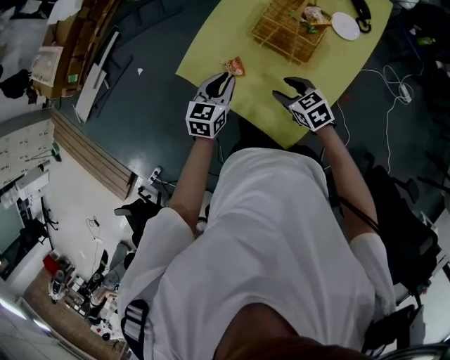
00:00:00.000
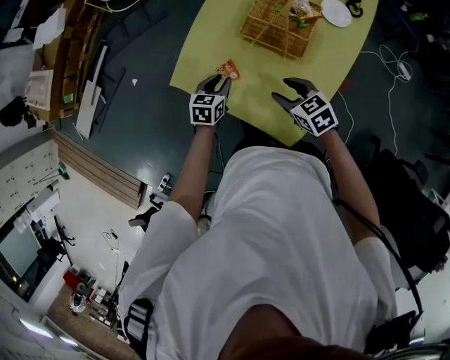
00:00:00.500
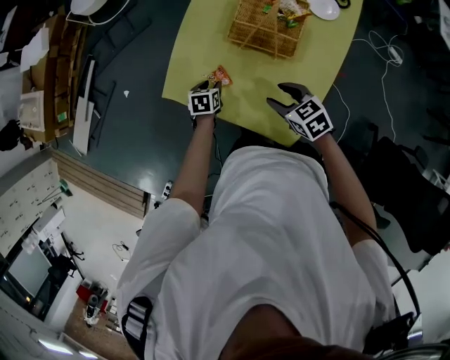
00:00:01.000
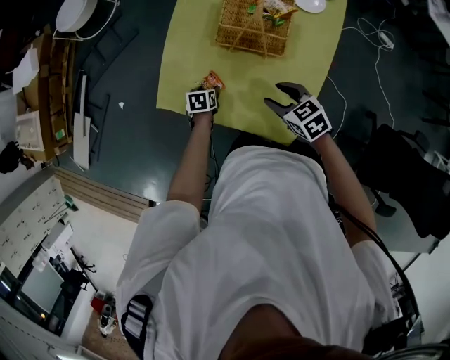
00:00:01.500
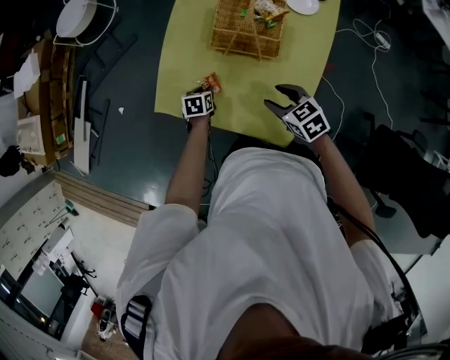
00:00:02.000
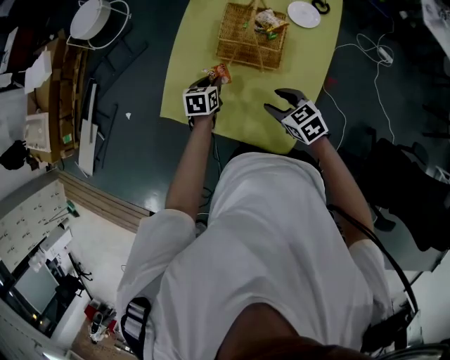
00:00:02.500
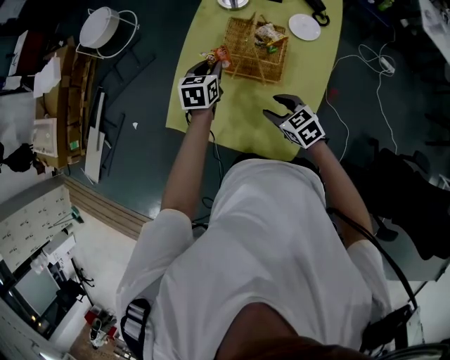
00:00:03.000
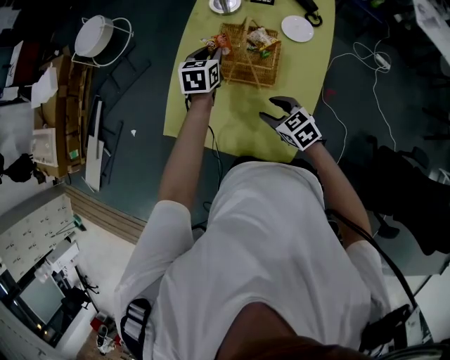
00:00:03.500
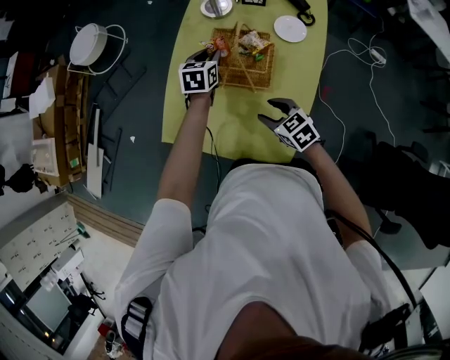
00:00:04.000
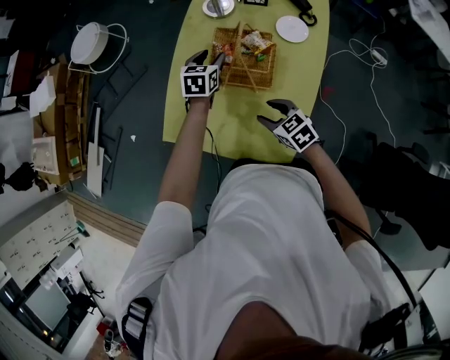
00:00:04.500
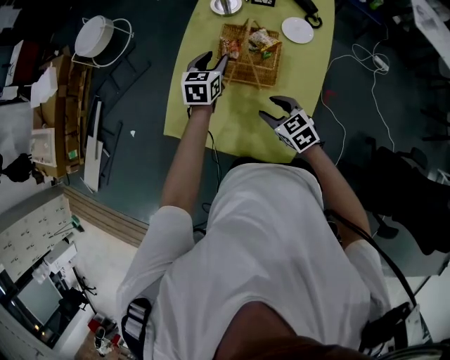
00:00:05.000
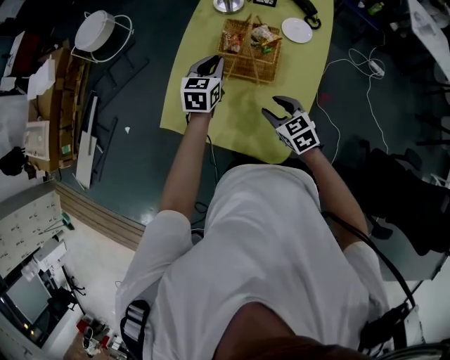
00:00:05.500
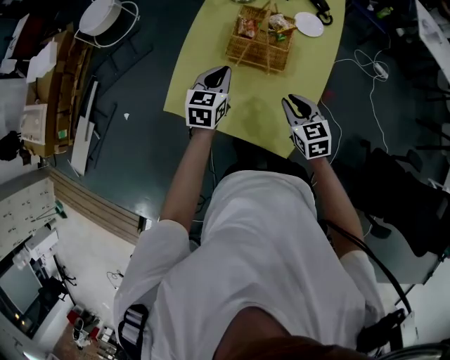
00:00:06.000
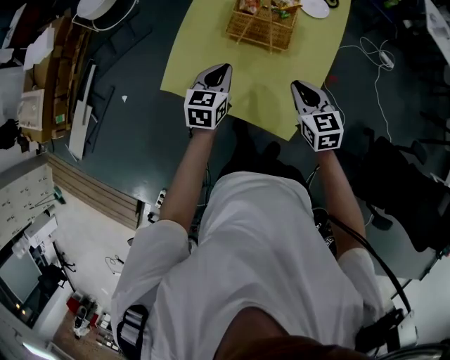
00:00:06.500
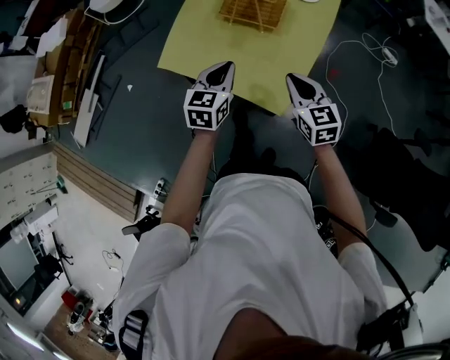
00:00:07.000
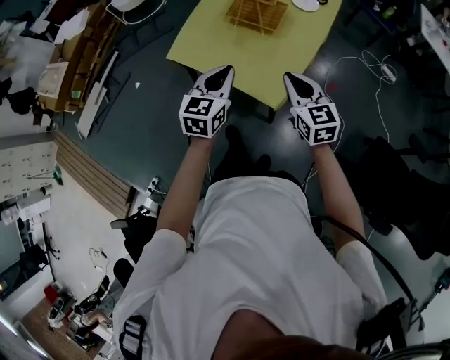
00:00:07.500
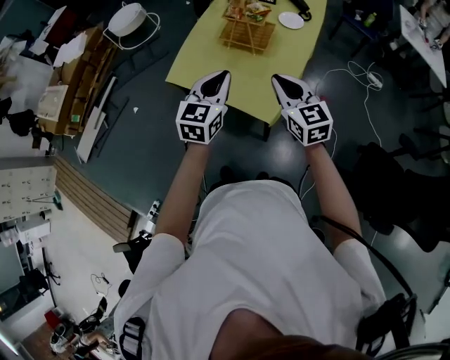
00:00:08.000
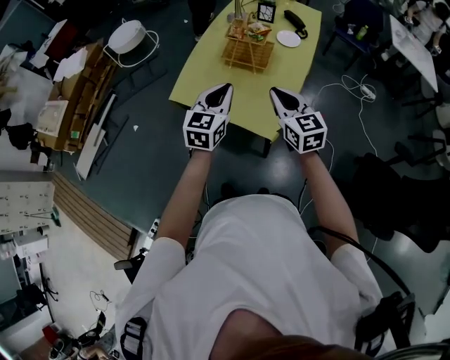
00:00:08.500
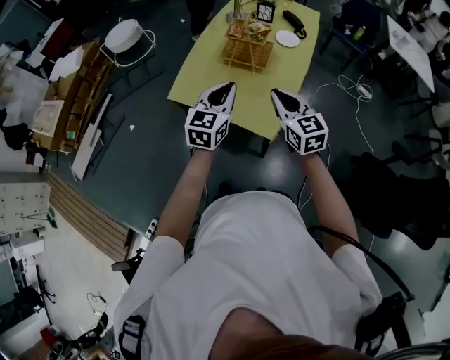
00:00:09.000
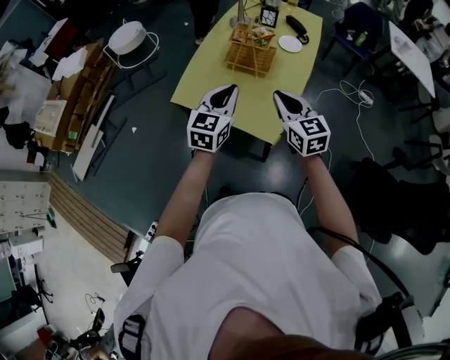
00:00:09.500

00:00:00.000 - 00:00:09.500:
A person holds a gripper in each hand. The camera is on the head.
00:00:00.000 - 00:00:02.000: The left gripper travels downward by some 20 cm, points its fingers some 30 degrees further downward, and opens, then closes once more. Meanwhile the right gripper goes some 5 cm to the right.
00:00:02.000 - 00:00:04.000: The right gripper moves roughly 5 cm; the left gripper shifts some 30 cm upward, forward and to the right, and changes its angle by roughly 30 degrees.
00:00:04.000 - 00:00:05.500: The left gripper moves backward, about 10 cm, and opens and closes again.
00:00:05.500 - 00:00:07.500: The left gripper moves backward, about 40 cm. Meanwhile the right gripper travels backward and upward by approximately 25 cm, turns by roughly 20 degrees, and closes up.
00:00:07.500 - 00:00:09.500: The left gripper goes roughly 10 cm upward. The right gripper shifts some 10 cm upward and to the left.

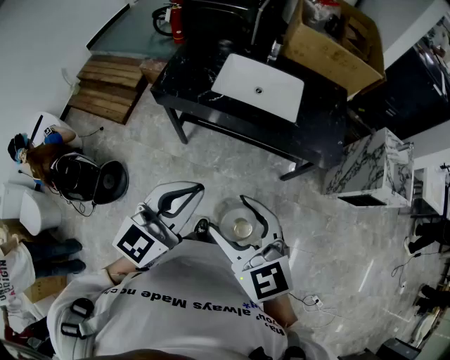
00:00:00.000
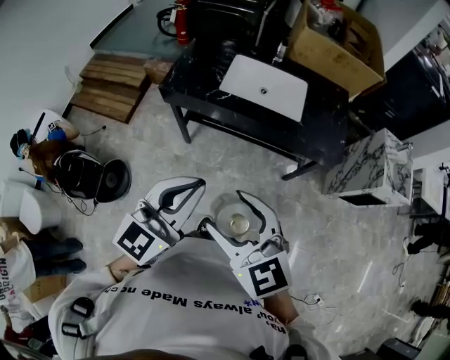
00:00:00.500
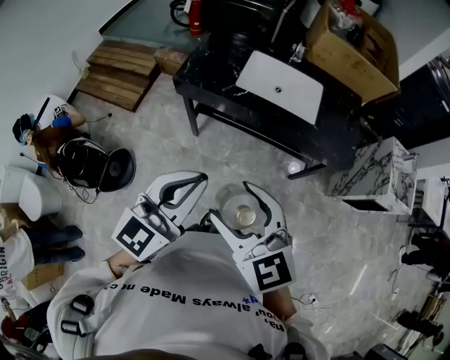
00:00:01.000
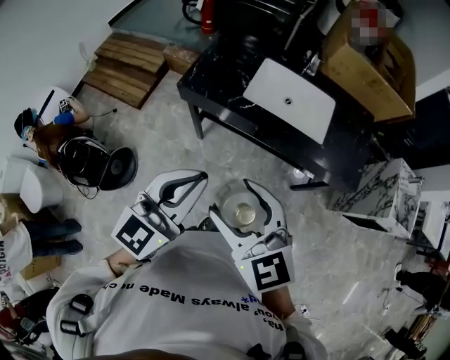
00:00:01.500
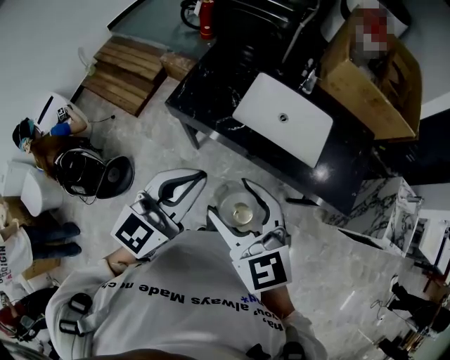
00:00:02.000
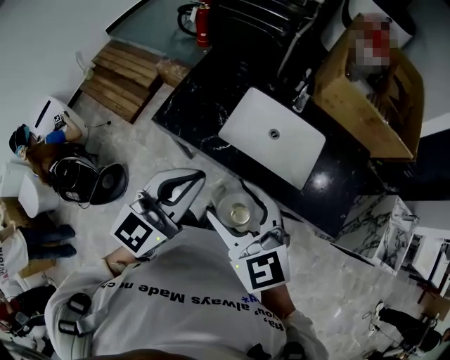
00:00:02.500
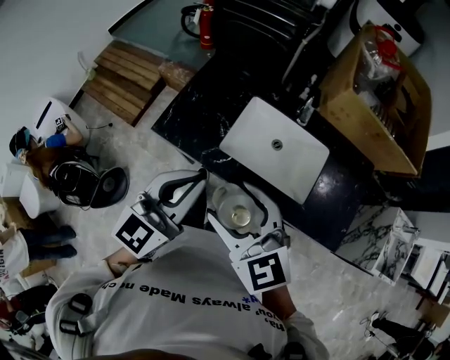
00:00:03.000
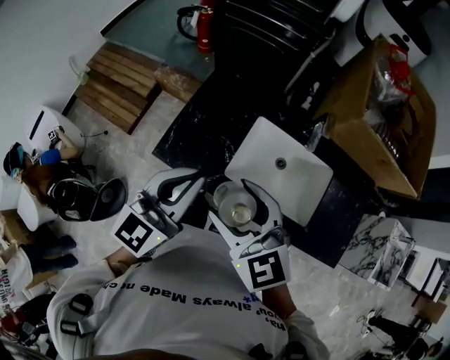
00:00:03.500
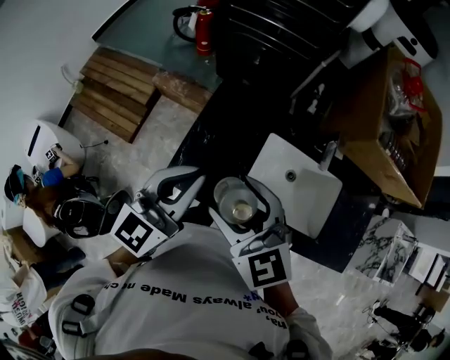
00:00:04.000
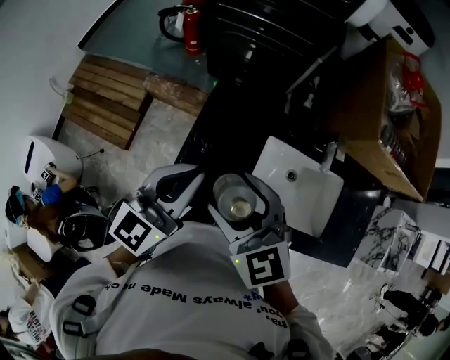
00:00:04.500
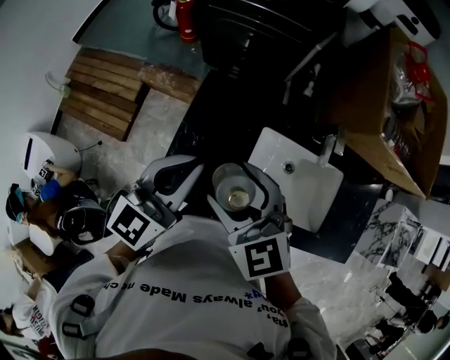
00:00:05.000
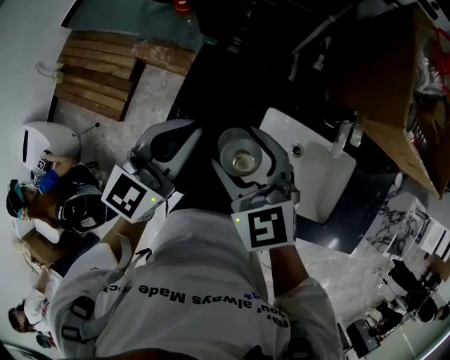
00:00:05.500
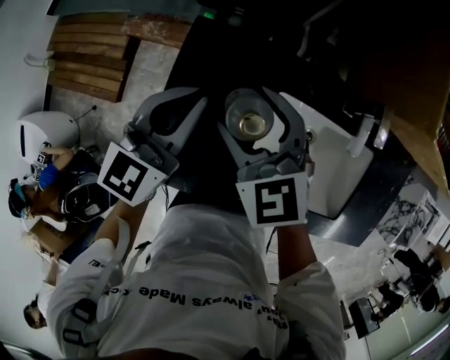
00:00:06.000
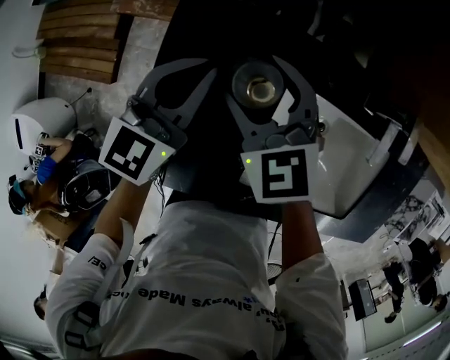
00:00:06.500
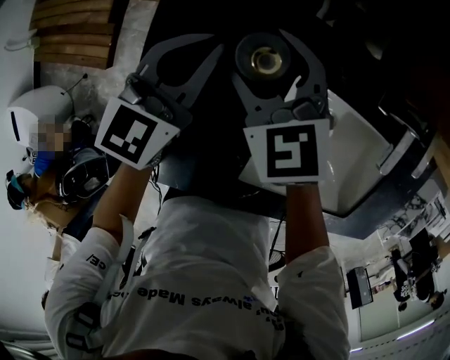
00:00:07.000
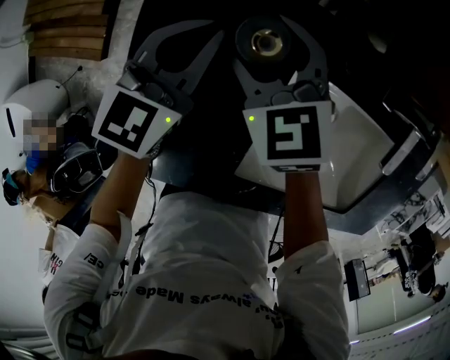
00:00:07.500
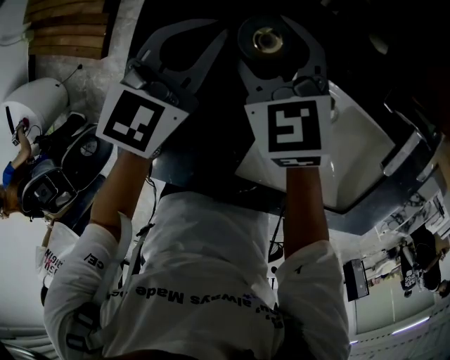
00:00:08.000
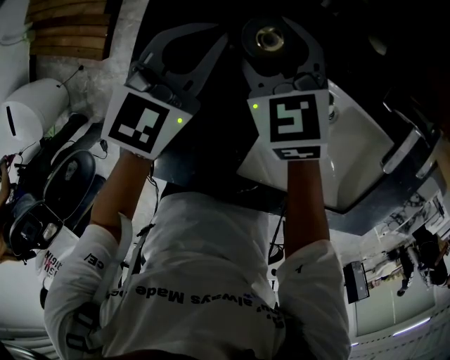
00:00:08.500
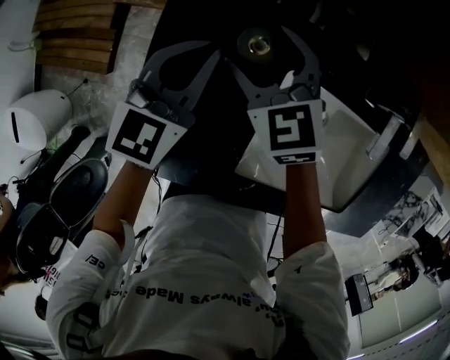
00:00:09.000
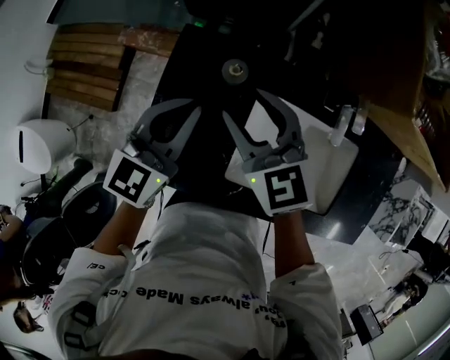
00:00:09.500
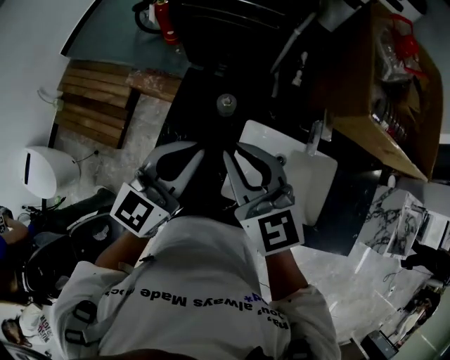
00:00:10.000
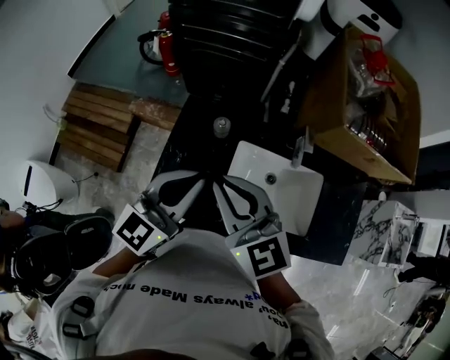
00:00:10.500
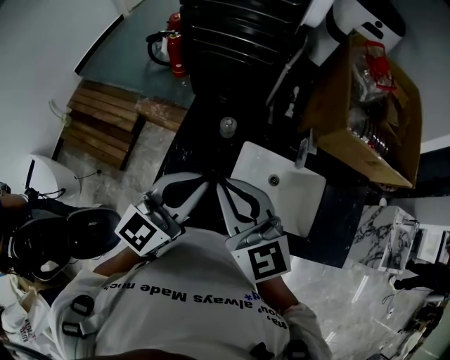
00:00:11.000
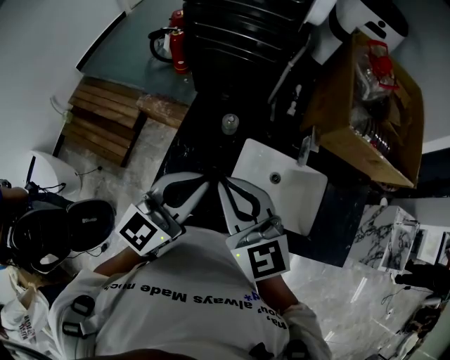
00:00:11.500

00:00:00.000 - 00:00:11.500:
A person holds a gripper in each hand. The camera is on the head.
00:00:00.000 - 00:00:02.000: The grippers both shift forward by approximately 20 cm.
00:00:02.000 - 00:00:04.000: Both grippers move forward, about 35 cm.
00:00:04.000 - 00:00:06.000: The grippers both shift forward and downward by roughly 25 cm.
00:00:06.000 - 00:00:07.500: The grippers both shift downward and forward by approximately 20 cm.
00:00:07.500 - 00:00:09.500: The left gripper goes about 25 cm upward and backward; the right gripper heads upward, backward and to the right, covering about 25 cm.
00:00:09.500 - 00:00:11.500: Both grippers move backward and upward, some 25 cm. The right gripper closes.

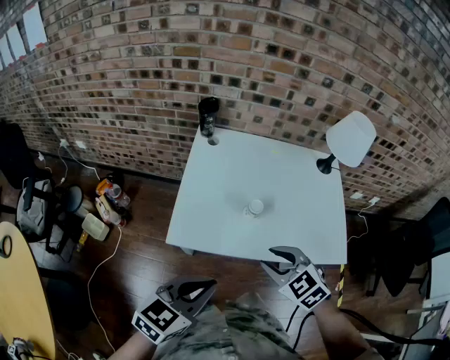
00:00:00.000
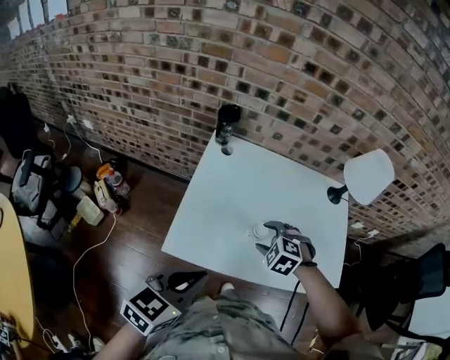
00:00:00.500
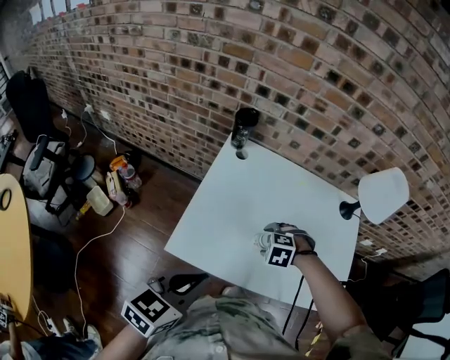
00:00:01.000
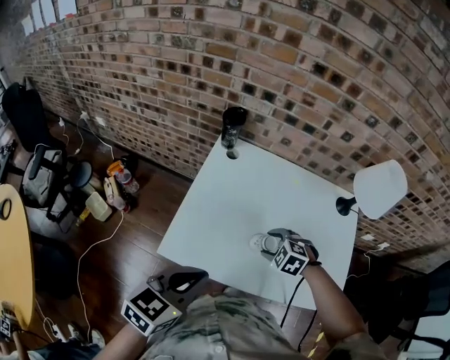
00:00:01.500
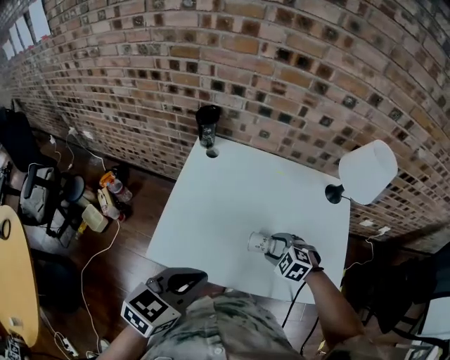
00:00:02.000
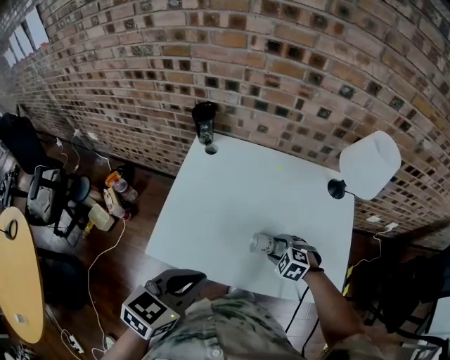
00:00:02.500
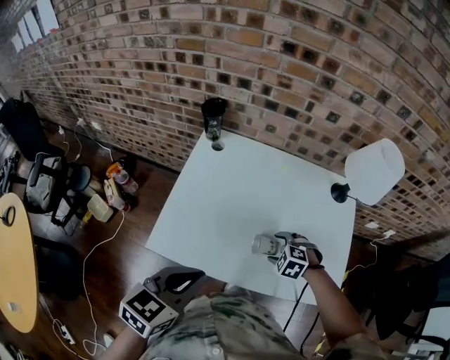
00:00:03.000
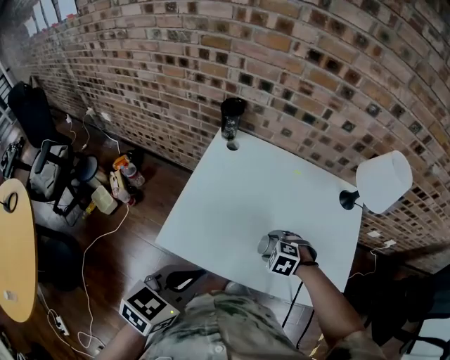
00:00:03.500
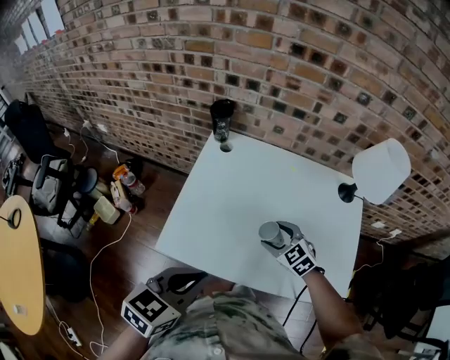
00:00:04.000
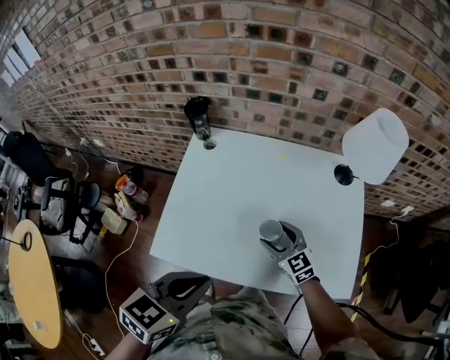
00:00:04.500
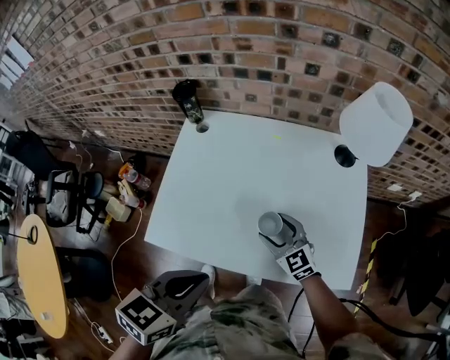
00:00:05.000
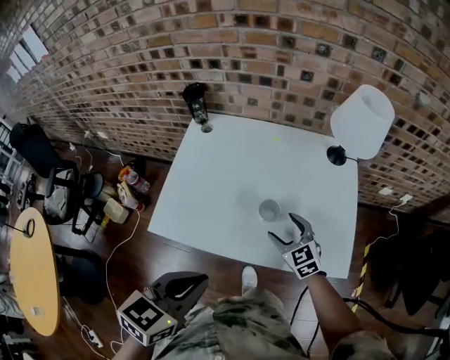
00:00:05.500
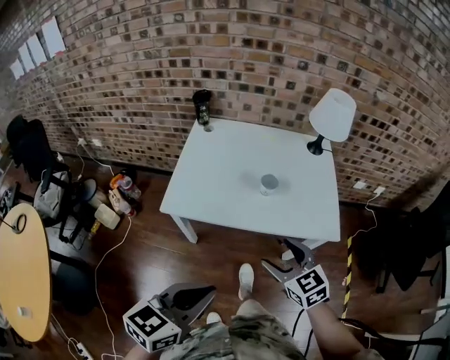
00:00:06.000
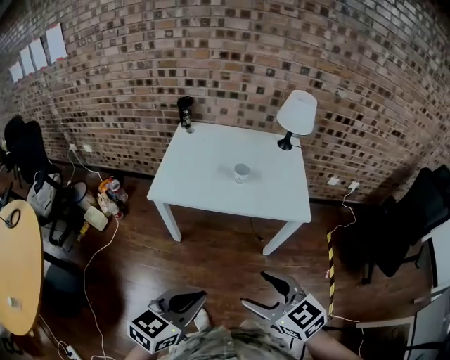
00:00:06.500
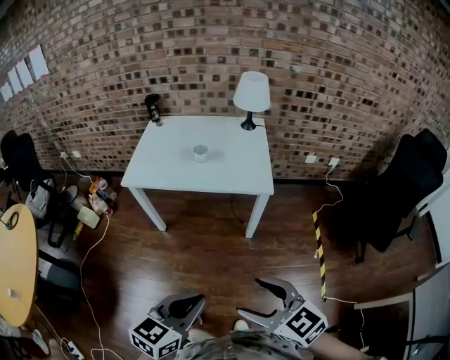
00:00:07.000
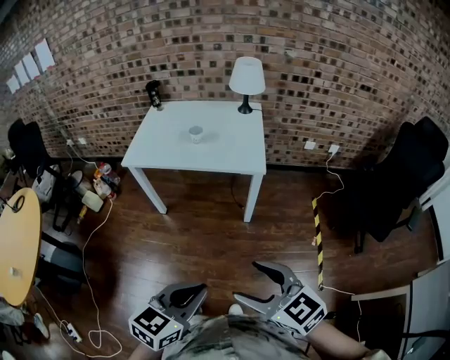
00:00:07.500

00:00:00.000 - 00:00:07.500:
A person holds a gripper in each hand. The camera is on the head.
00:00:00.000 - 00:00:02.000: The left gripper changes place by approximately 15 cm. The right gripper shifts by approximately 25 cm, and changes its angle by approximately 30 degrees.
00:00:02.000 - 00:00:04.000: The right gripper changes place by some 5 cm, and turns by roughly 30 degrees.
00:00:04.000 - 00:00:05.500: Both grippers move to the right and backward, some 10 cm.
00:00:05.500 - 00:00:07.500: Both grippers are carried backward, roughly 60 cm.
